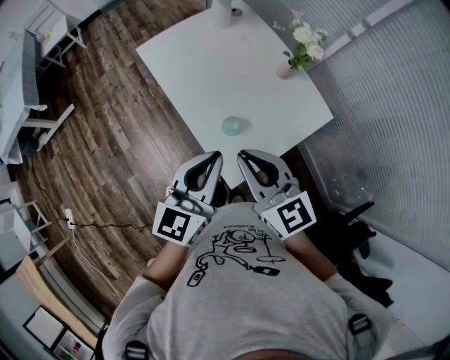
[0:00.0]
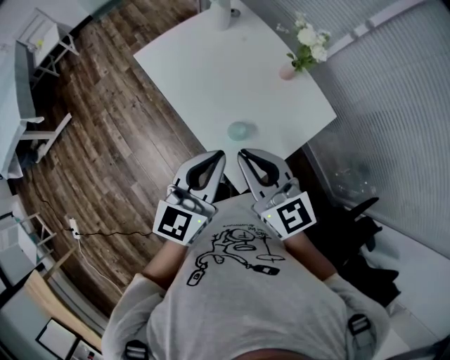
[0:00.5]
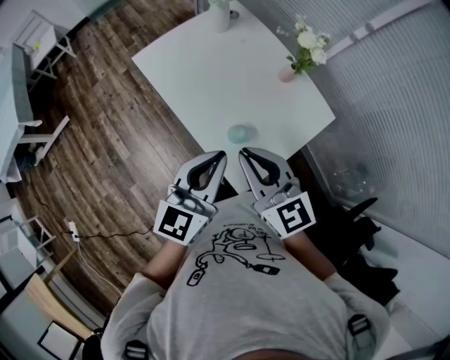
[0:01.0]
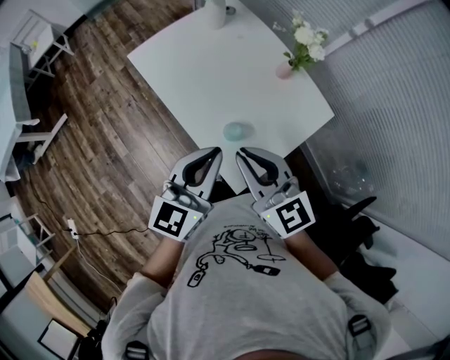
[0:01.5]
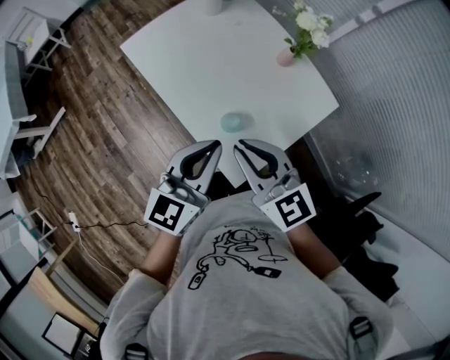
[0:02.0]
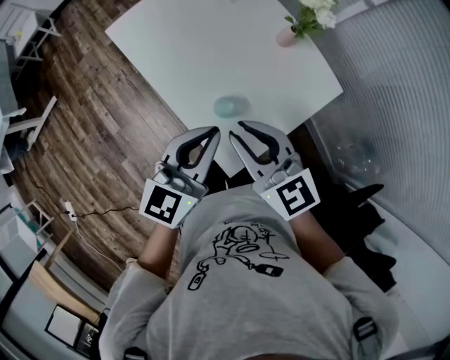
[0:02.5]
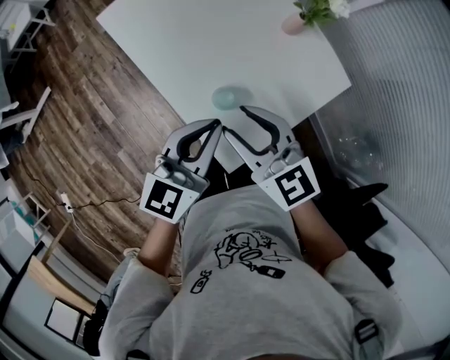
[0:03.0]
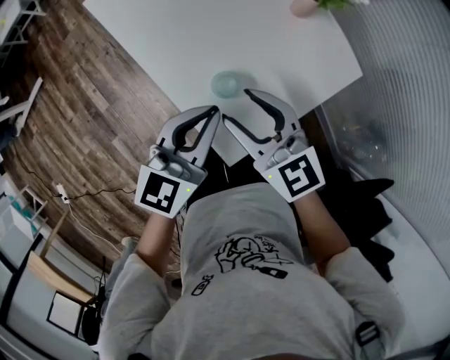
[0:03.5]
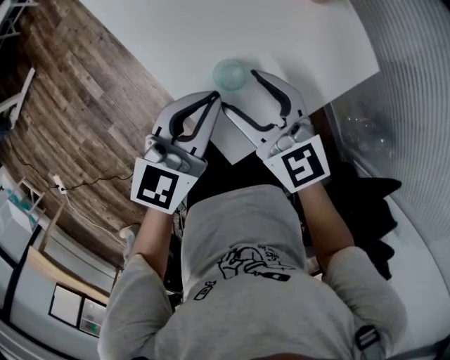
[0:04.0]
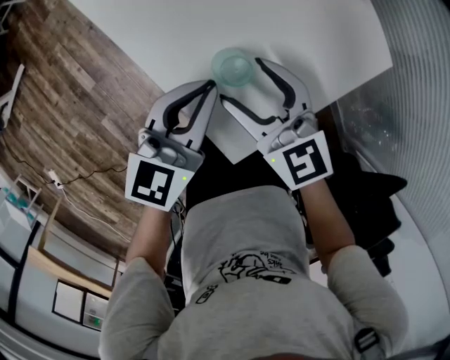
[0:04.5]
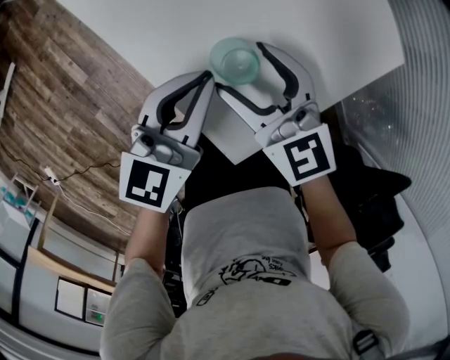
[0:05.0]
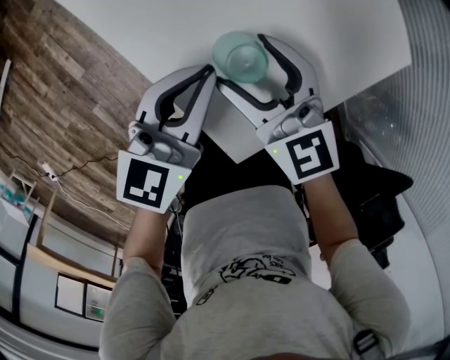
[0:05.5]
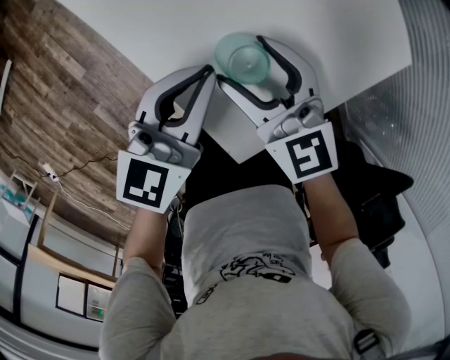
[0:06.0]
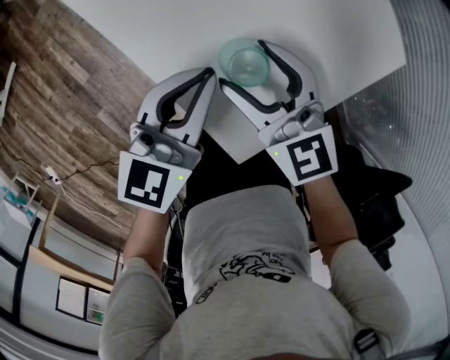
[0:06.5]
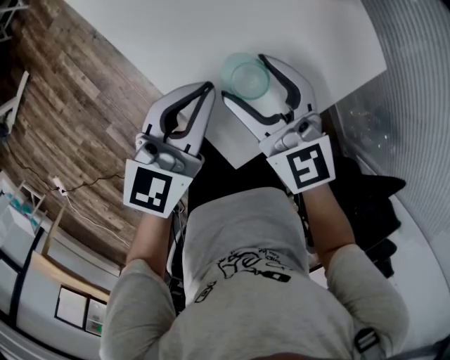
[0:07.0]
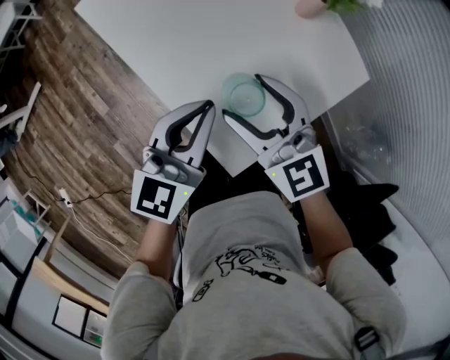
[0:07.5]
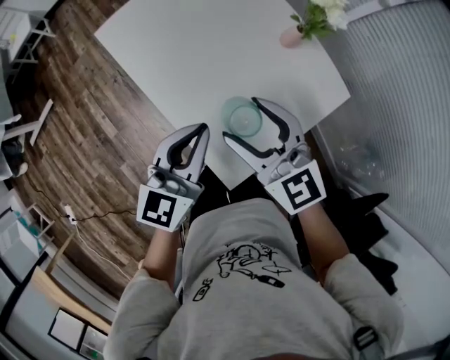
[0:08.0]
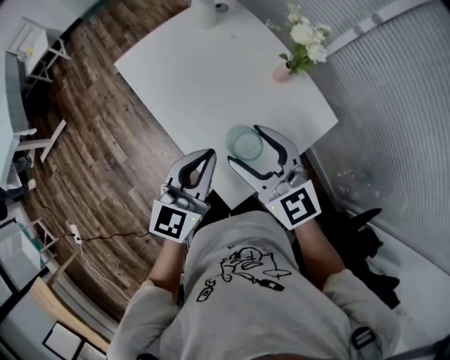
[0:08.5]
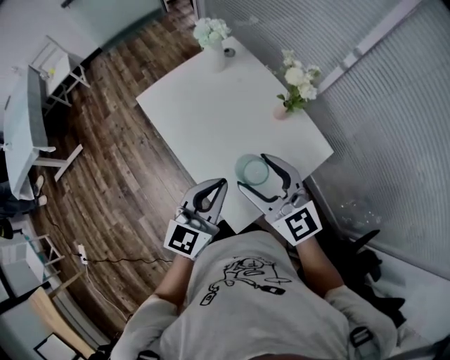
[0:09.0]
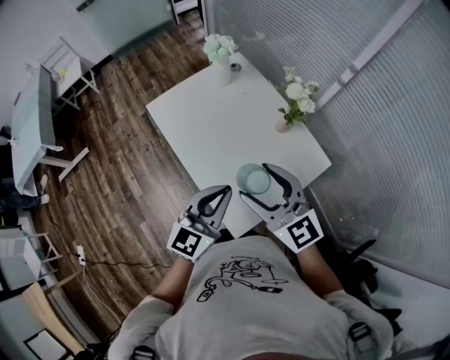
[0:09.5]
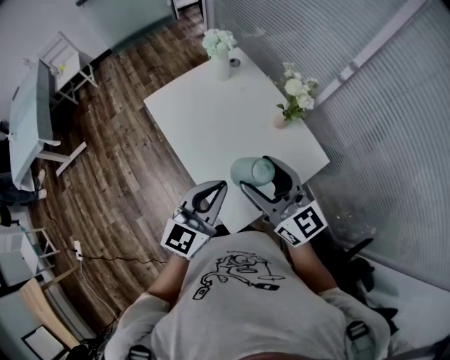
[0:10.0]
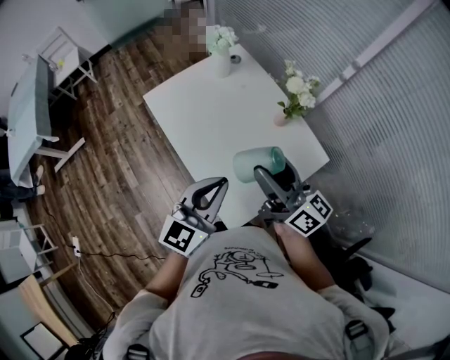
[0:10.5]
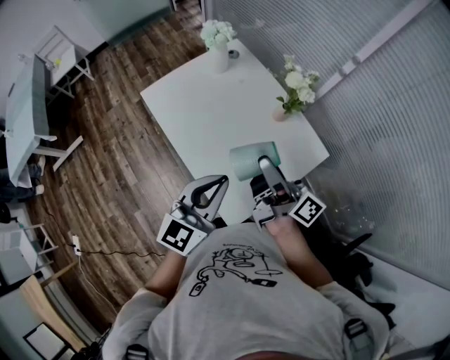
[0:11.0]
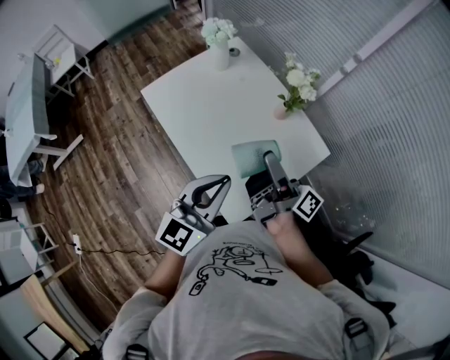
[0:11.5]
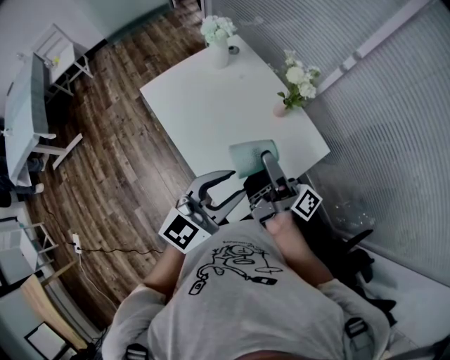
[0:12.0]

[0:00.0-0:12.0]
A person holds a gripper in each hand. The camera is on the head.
0:00.0 to 0:02.0: The right gripper ends up approximately 5 cm from where it was; the left gripper shifts about 5 cm forward.
0:02.0 to 0:04.0: The grippers both shift downward by about 20 cm. The right gripper opens up.
0:04.0 to 0:06.0: Both grippers move downward, approximately 10 cm.
0:06.0 to 0:08.0: Both grippers travel together upward, roughly 20 cm.
0:08.0 to 0:10.0: Both grippers travel together upward, about 15 cm.
0:10.0 to 0:12.0: The right gripper moves some 5 cm, and twists some 70 degrees clockwise, seen from behind; the left gripper opens its fingers.

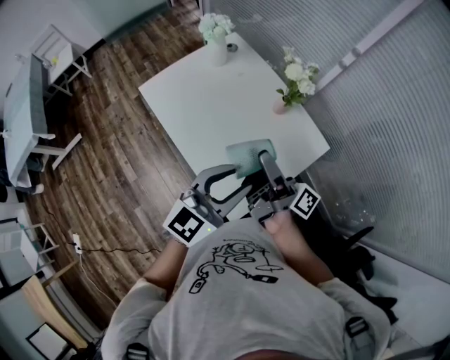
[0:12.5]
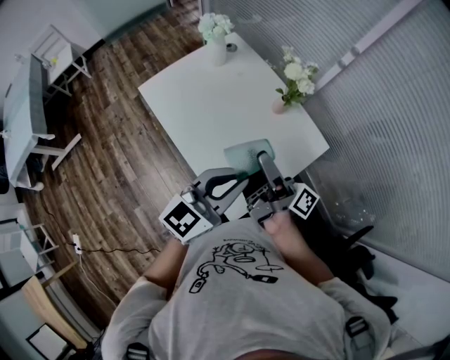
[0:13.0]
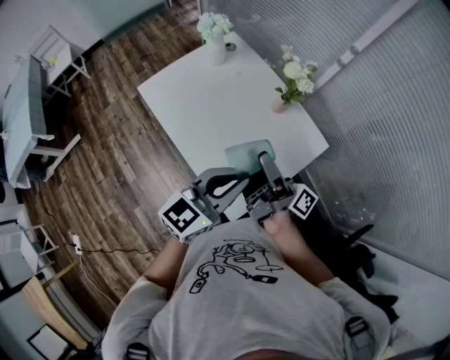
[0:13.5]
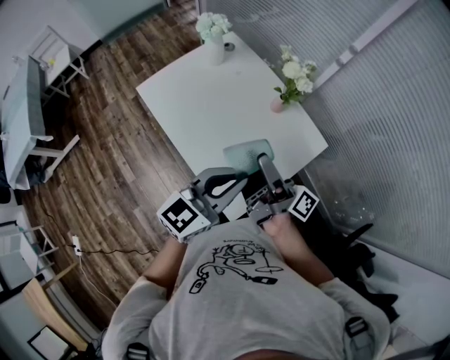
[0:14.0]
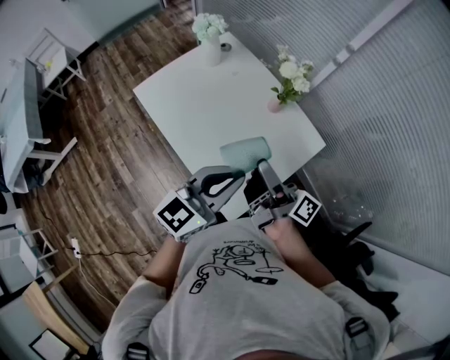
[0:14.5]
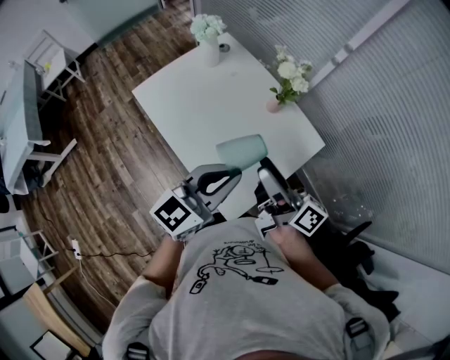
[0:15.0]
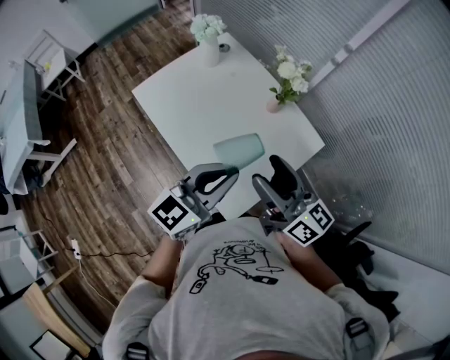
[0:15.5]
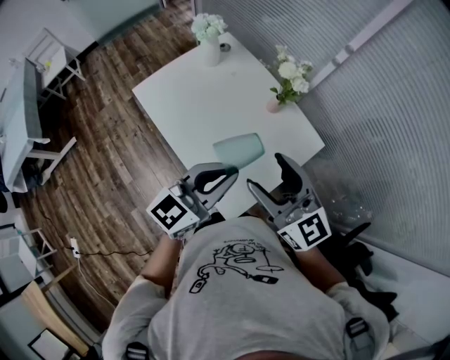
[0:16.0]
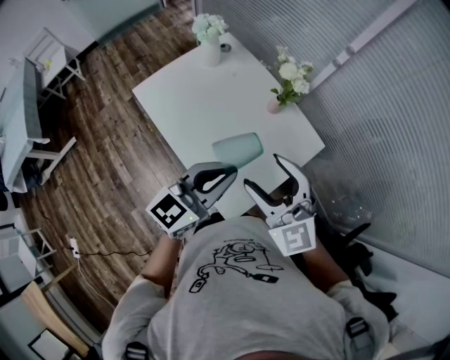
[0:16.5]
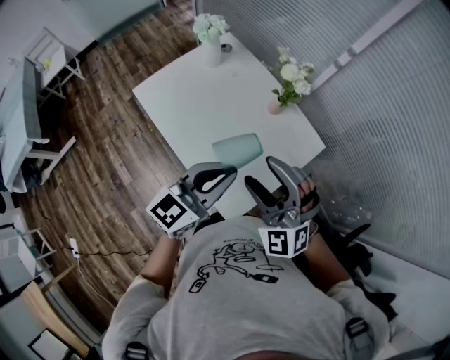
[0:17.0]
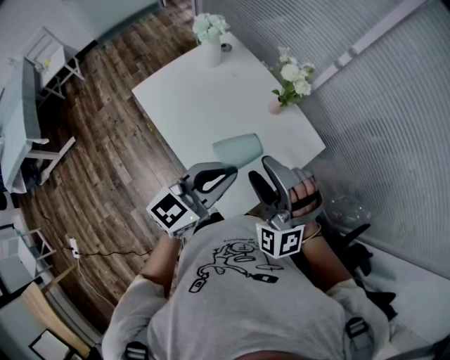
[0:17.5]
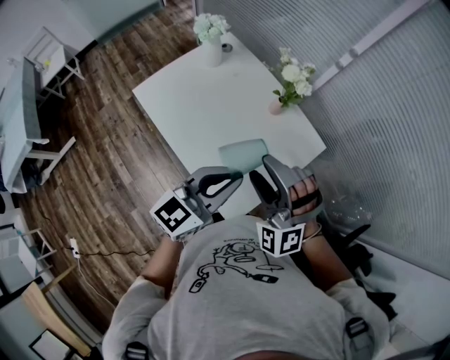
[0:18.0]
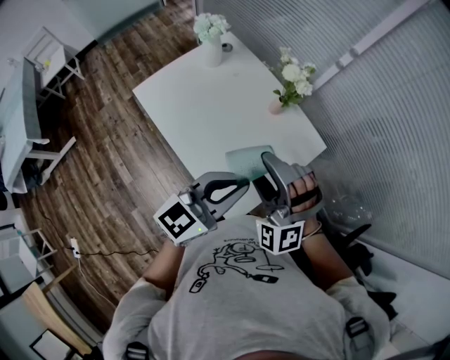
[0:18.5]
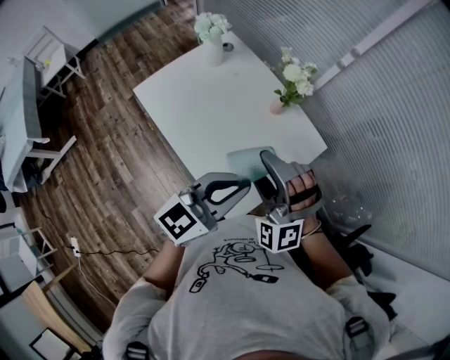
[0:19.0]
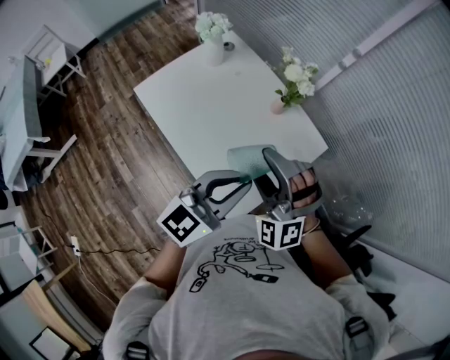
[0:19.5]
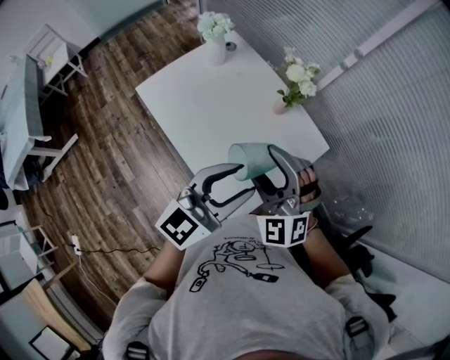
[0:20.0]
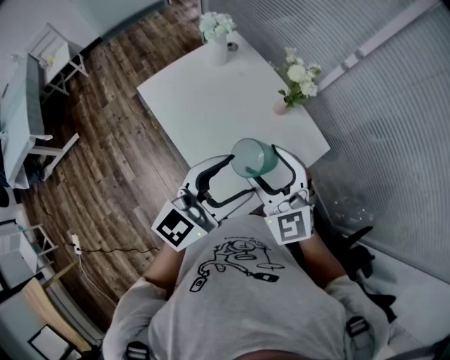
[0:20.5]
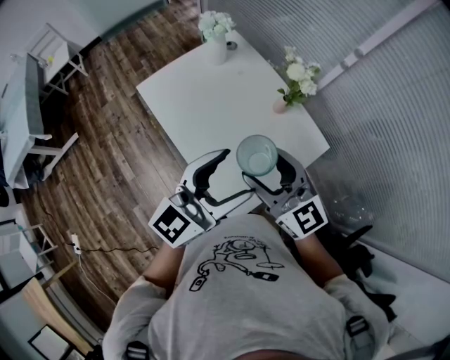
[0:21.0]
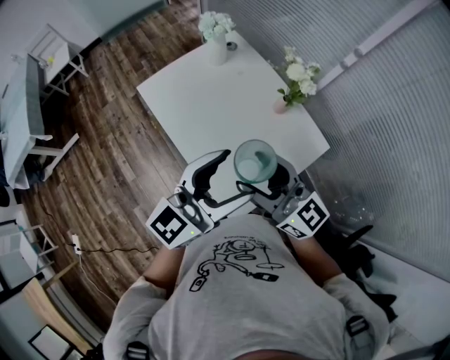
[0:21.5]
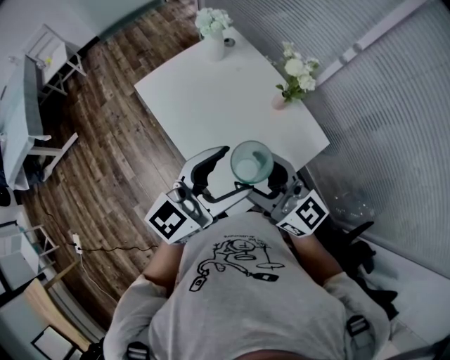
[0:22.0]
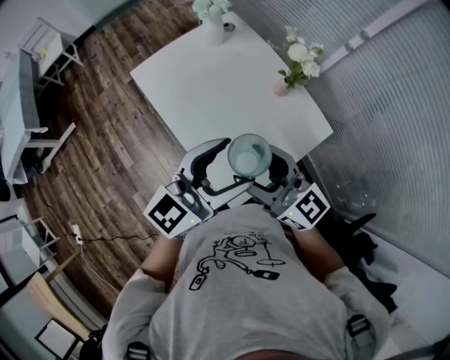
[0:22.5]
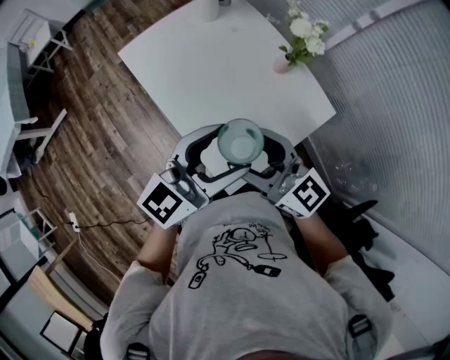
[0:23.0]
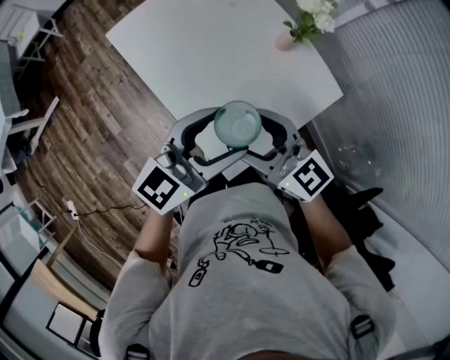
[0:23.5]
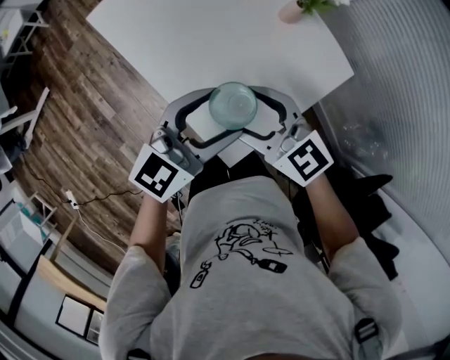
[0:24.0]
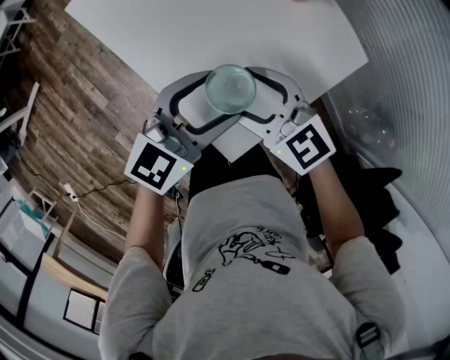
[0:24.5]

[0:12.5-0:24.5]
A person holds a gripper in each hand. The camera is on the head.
0:12.5 to 0:14.5: The left gripper closes.
0:14.5 to 0:16.5: The right gripper changes place by approximately 5 cm, and twists roughly 100 degrees counterclockwise, seen from behind.
0:16.5 to 0:18.5: The right gripper twists roughly 50 degrees counterclockwise, seen from behind.
0:18.5 to 0:20.5: The right gripper rolls clockwise, seen from behind, by some 40 degrees. Meanwhile the left gripper opens up.
0:20.5 to 0:22.5: The right gripper changes its angle by approximately 40 degrees.
0:22.5 to 0:24.5: Both grippers travel together downward, about 25 cm. The left gripper changes its angle by approximately 20 degrees, while the right gripper turns by roughly 30 degrees.

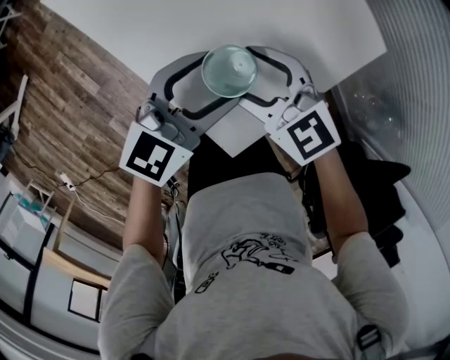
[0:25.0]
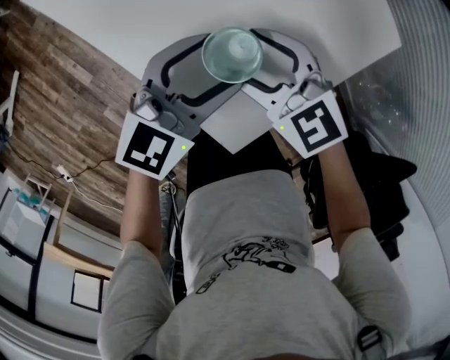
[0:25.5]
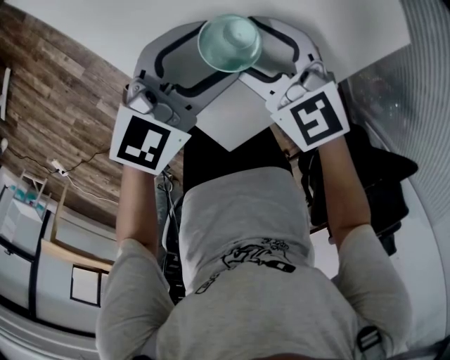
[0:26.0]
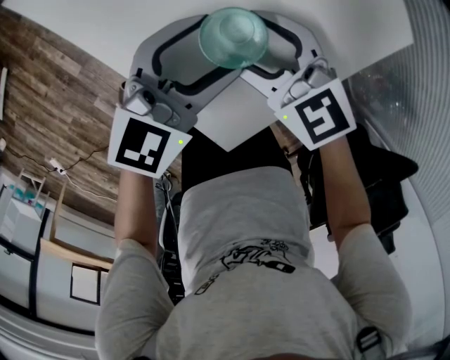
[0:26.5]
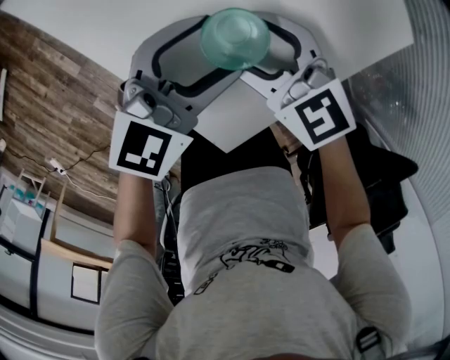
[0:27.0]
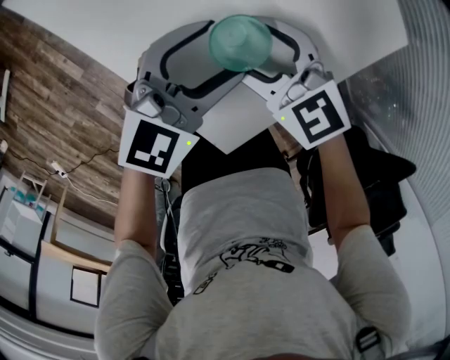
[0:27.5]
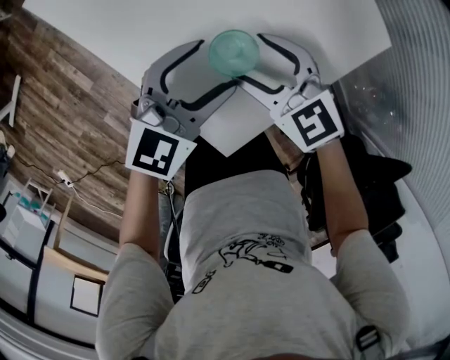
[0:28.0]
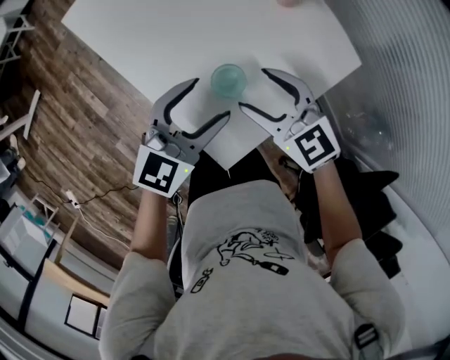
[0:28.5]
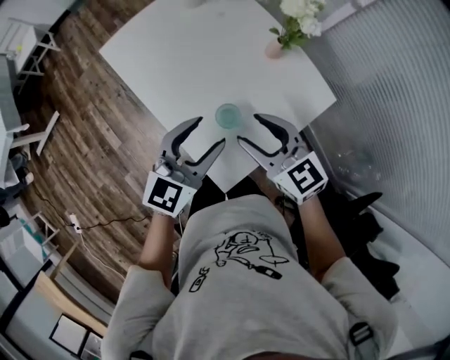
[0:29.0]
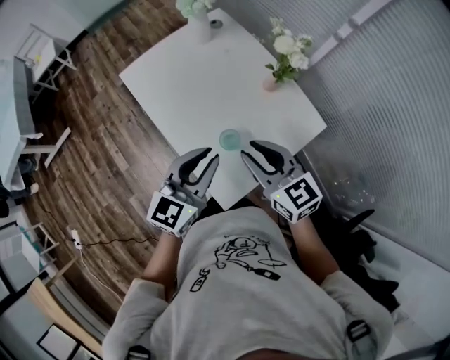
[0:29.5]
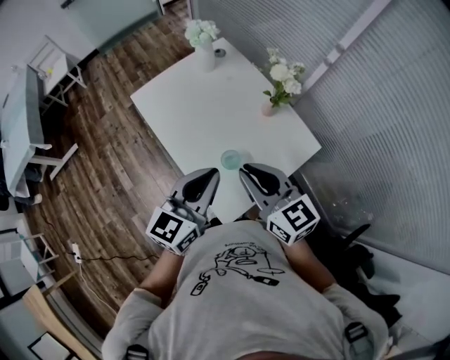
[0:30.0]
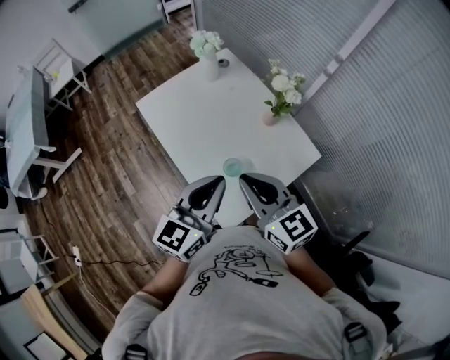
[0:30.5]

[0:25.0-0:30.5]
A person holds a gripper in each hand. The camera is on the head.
0:25.0 to 0:27.0: Both grippers travel together downward, approximately 5 cm.
0:27.0 to 0:28.5: The two grippers go approximately 10 cm upward.
0:28.5 to 0:30.5: The grippers both shift upward by approximately 25 cm. The right gripper changes its angle by approximately 20 degrees, and closes its fingers. Meanwhile the left gripper swivels about 30 degrees, and closes.
